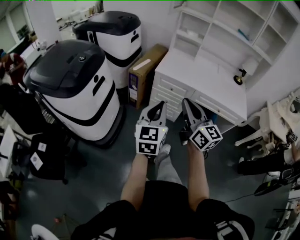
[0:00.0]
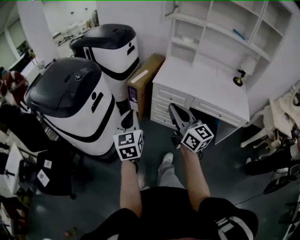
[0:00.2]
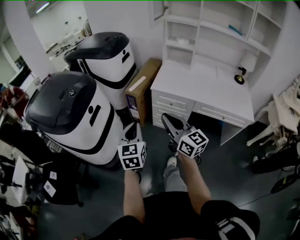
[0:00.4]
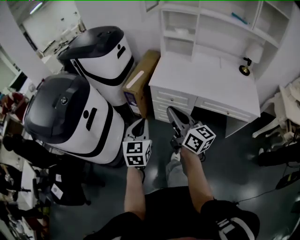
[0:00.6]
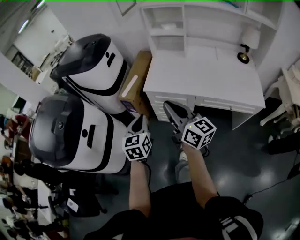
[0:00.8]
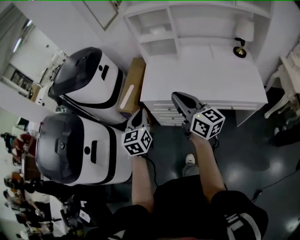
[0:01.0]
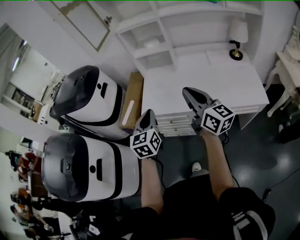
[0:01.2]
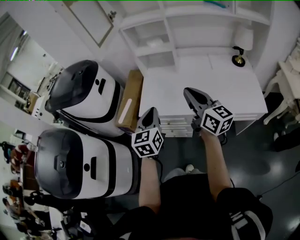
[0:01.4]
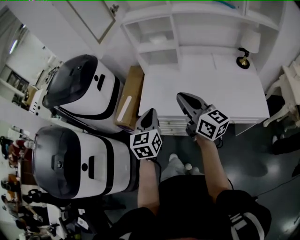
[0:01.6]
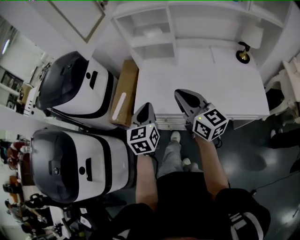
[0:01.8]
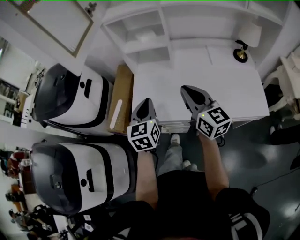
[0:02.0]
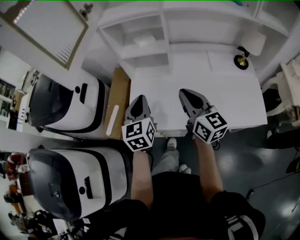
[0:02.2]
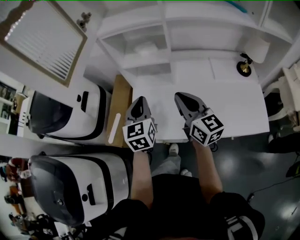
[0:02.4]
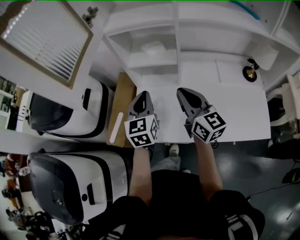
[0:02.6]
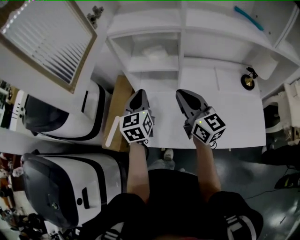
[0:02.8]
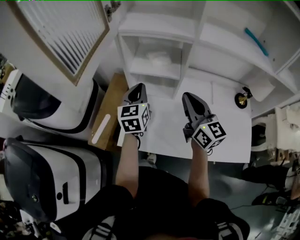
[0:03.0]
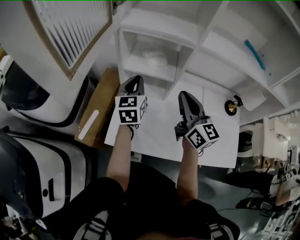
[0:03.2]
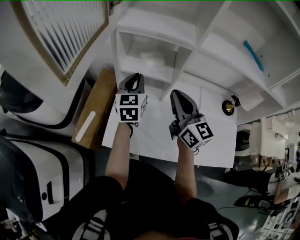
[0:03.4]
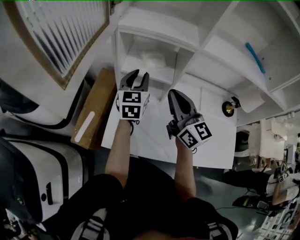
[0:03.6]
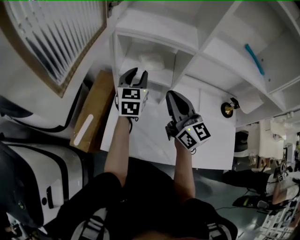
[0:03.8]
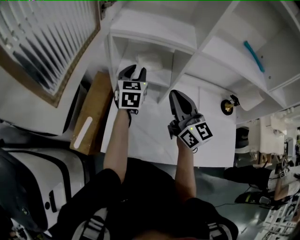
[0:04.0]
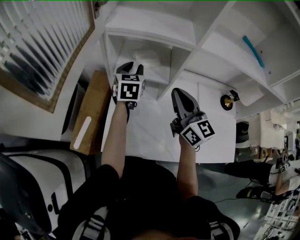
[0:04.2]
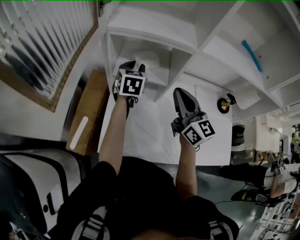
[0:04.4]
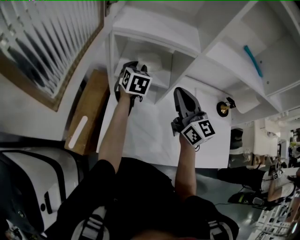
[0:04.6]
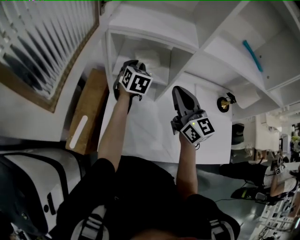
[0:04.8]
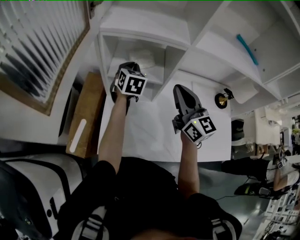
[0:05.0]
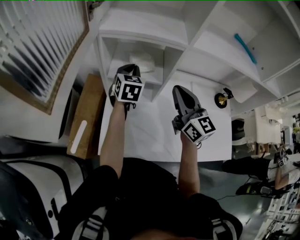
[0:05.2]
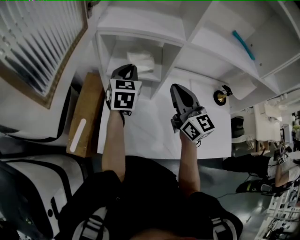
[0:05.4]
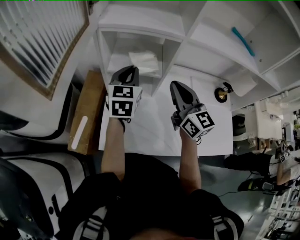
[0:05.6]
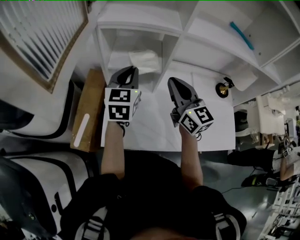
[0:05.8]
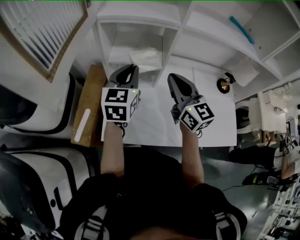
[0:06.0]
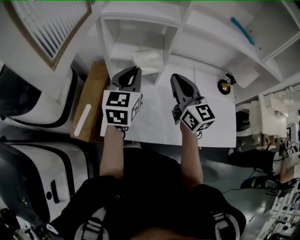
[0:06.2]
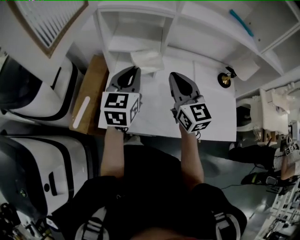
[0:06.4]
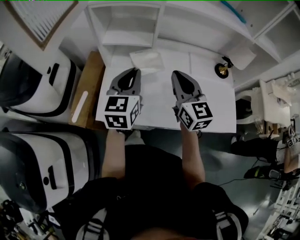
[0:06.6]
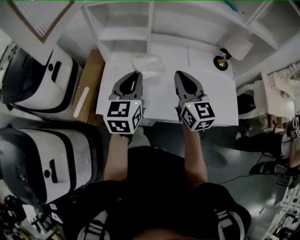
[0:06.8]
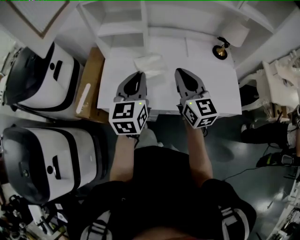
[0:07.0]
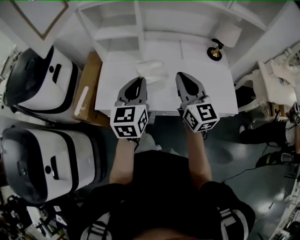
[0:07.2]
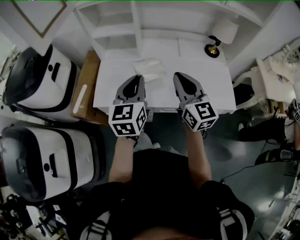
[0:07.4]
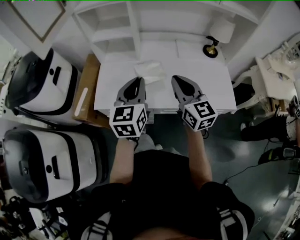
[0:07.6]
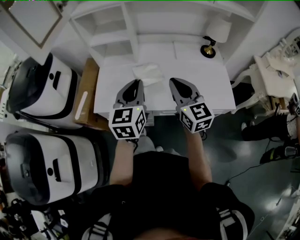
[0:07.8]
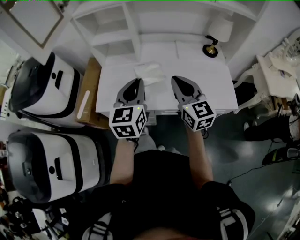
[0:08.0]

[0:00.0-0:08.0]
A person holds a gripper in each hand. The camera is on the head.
0:00.0 to 0:01.6: The grippers both shift forward and to the right by roughly 40 cm.
0:01.6 to 0:03.2: Both grippers travel together forward, approximately 30 cm.
0:03.2 to 0:04.8: The left gripper goes approximately 15 cm forward and to the right, and turns by roughly 30 degrees. Meanwhile the right gripper goes approximately 5 cm forward.
0:04.8 to 0:06.4: The right gripper shifts about 10 cm backward, while the left gripper shifts some 25 cm backward and upward, and swivels about 20 degrees.
0:06.4 to 0:08.0: The two grippers go about 25 cm backward and to the right.

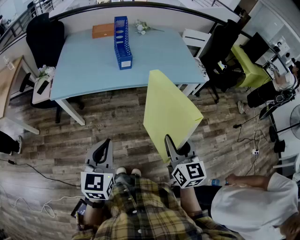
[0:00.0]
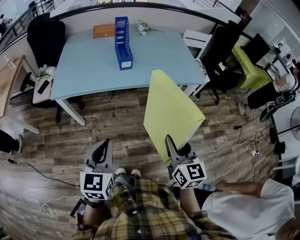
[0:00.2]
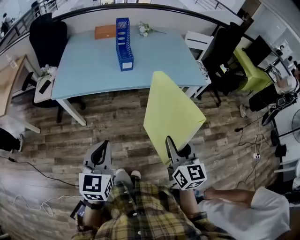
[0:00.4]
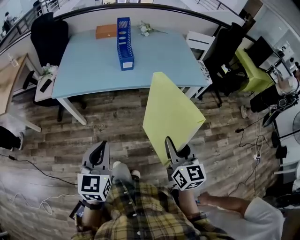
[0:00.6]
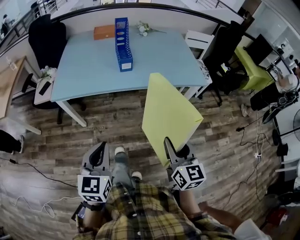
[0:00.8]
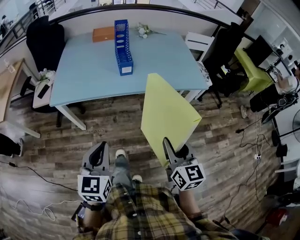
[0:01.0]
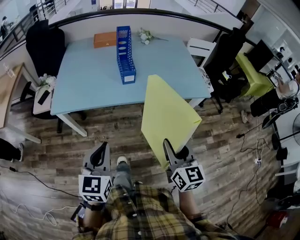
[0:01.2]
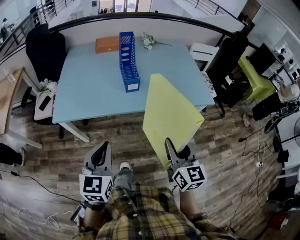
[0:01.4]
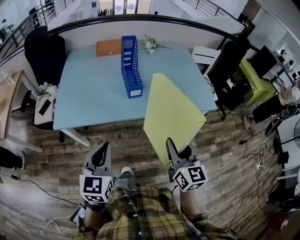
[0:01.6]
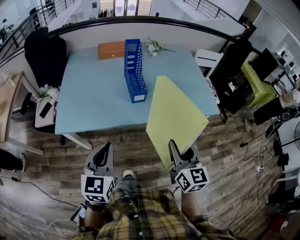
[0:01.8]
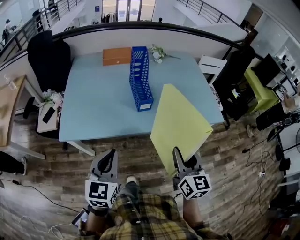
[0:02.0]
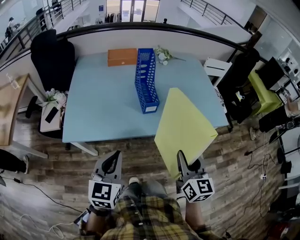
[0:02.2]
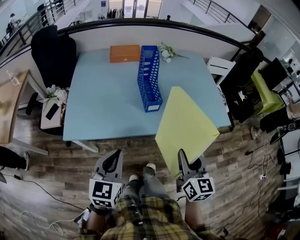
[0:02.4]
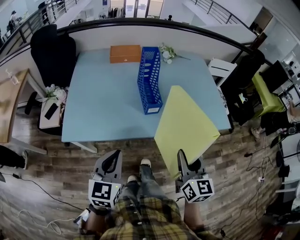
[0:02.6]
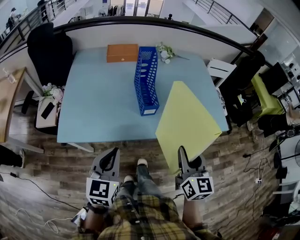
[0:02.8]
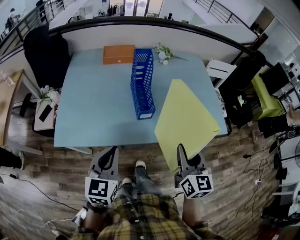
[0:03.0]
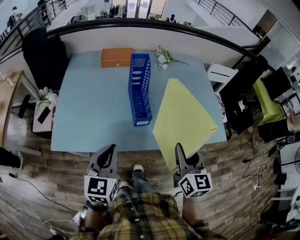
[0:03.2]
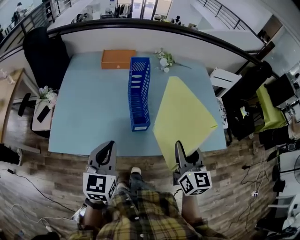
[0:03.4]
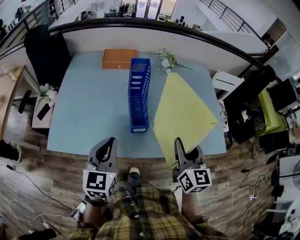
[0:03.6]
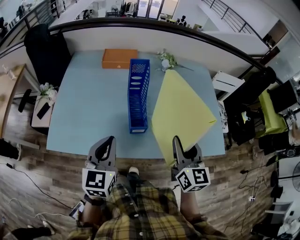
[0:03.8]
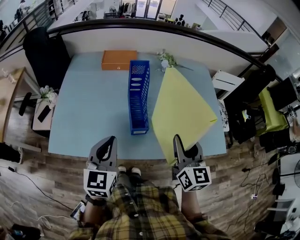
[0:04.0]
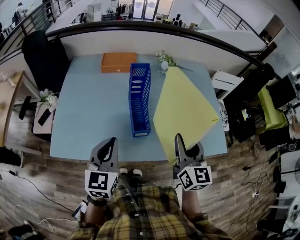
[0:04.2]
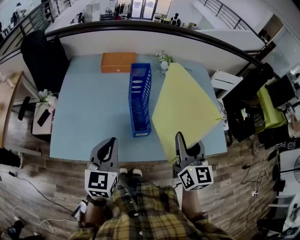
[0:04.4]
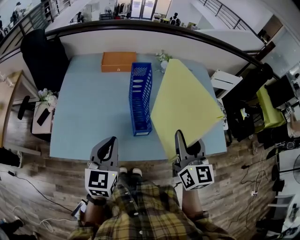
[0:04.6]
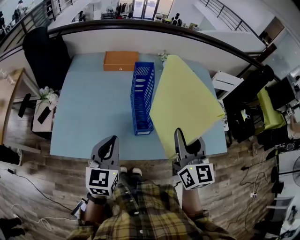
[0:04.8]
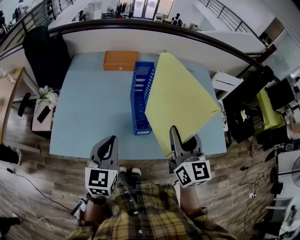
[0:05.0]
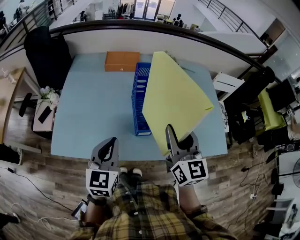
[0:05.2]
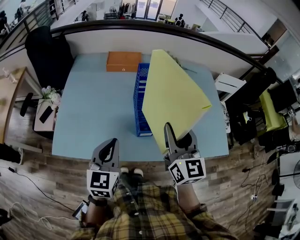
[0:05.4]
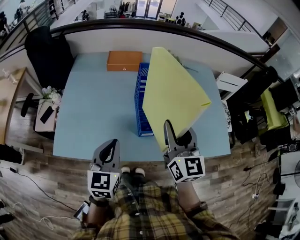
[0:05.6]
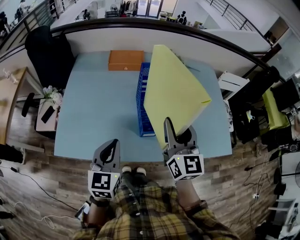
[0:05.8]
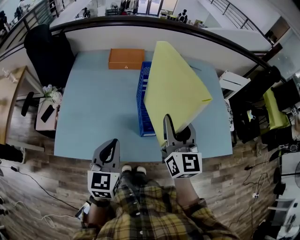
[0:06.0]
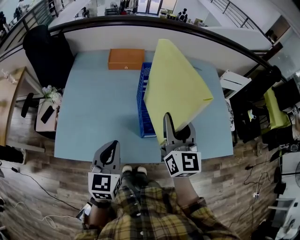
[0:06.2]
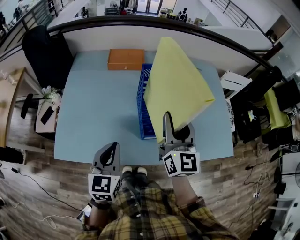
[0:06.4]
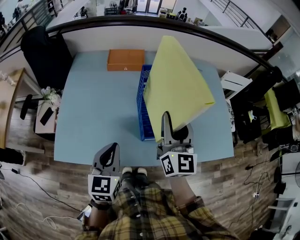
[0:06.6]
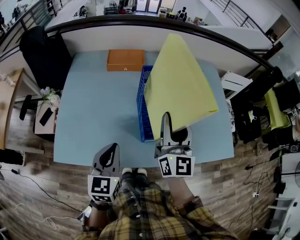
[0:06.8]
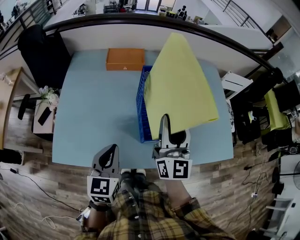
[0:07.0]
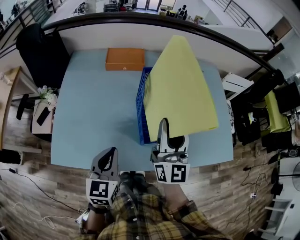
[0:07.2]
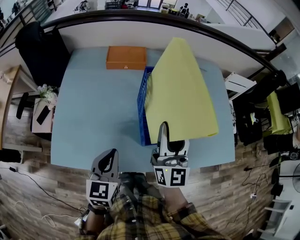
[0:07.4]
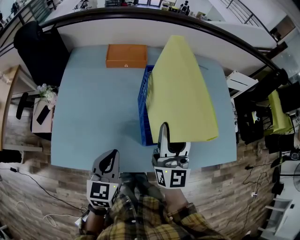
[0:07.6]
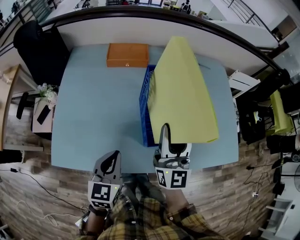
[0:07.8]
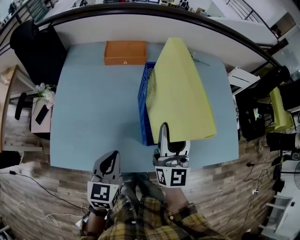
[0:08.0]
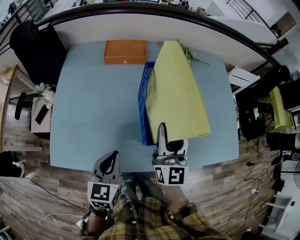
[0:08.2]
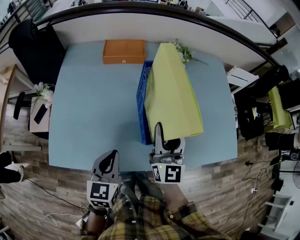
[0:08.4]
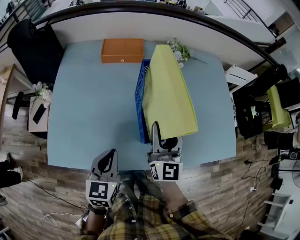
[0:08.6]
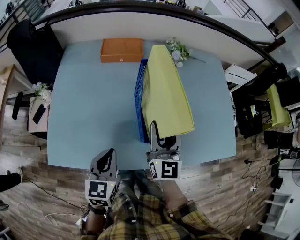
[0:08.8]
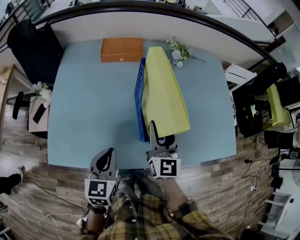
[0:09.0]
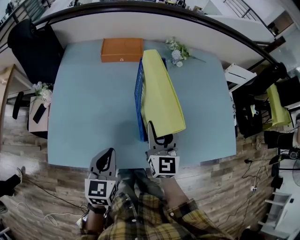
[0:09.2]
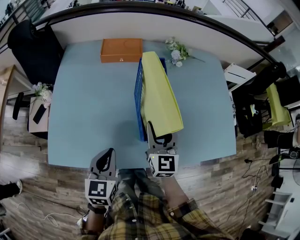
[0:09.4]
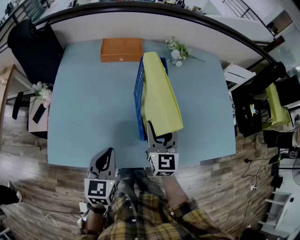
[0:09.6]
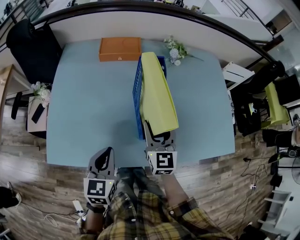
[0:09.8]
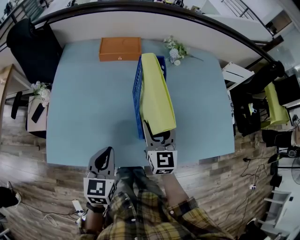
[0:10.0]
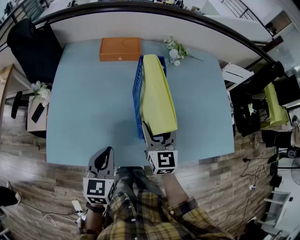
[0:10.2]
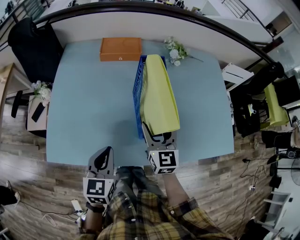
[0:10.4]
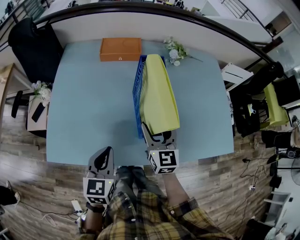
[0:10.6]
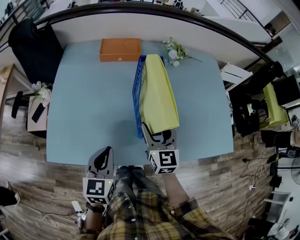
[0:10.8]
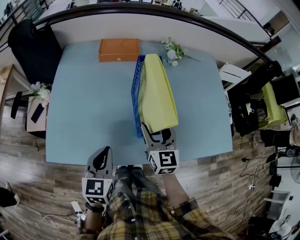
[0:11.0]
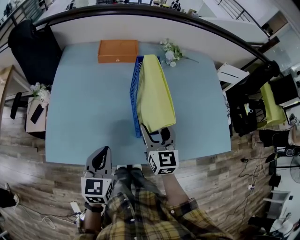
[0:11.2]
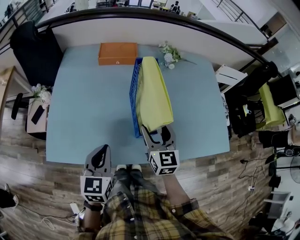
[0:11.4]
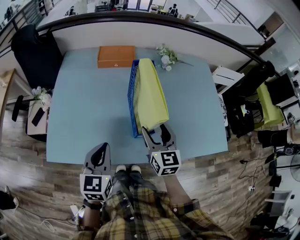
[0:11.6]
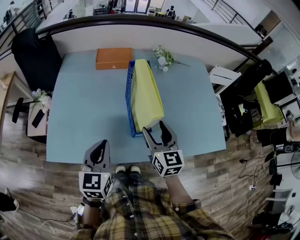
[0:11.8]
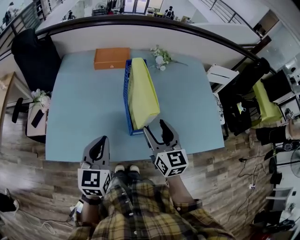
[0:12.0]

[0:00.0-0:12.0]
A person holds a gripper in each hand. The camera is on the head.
0:00.0 to 0:01.6: The grippers both shift forward by about 20 cm.
0:01.6 to 0:03.0: Both grippers travel together forward, roughly 15 cm.
0:03.0 to 0:04.4: Both grippers move forward, about 15 cm.
0:04.4 to 0:06.0: The right gripper travels to the left and forward by some 10 cm.
0:06.0 to 0:07.6: The left gripper heads downward, covering roughly 5 cm.
0:07.6 to 0:09.0: The right gripper heads downward, covering roughly 10 cm.
0:09.0 to 0:10.4: The right gripper opens.
0:10.4 to 0:12.0: The right gripper is displaced upward and backward by about 10 cm; the left gripper moves upward, roughly 5 cm.

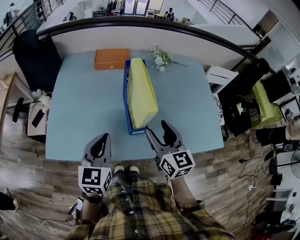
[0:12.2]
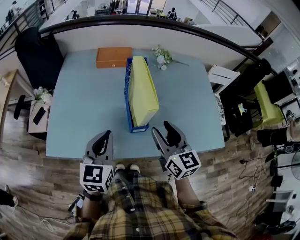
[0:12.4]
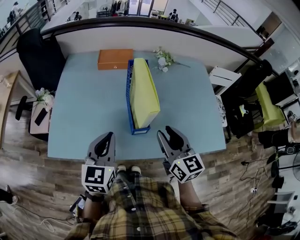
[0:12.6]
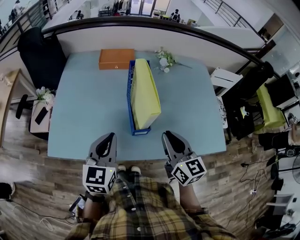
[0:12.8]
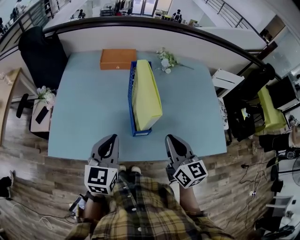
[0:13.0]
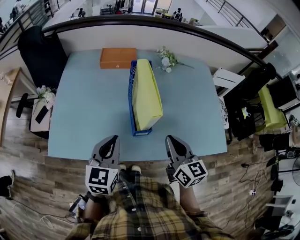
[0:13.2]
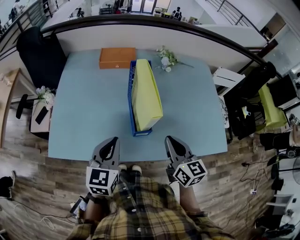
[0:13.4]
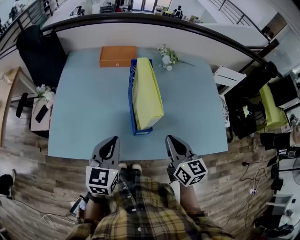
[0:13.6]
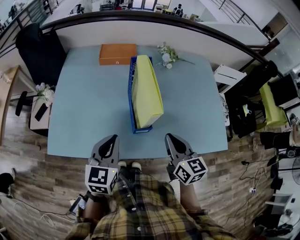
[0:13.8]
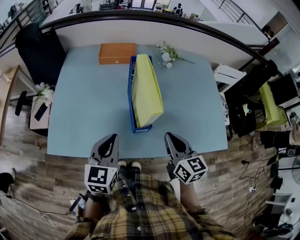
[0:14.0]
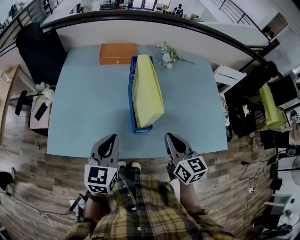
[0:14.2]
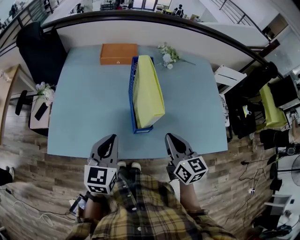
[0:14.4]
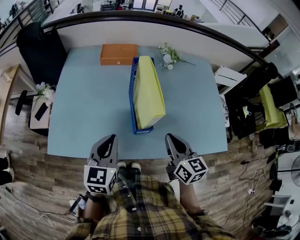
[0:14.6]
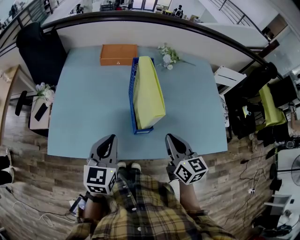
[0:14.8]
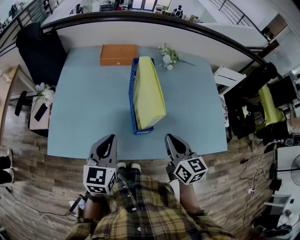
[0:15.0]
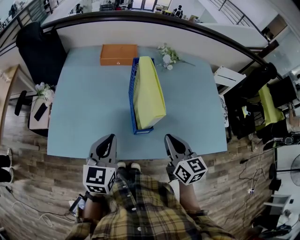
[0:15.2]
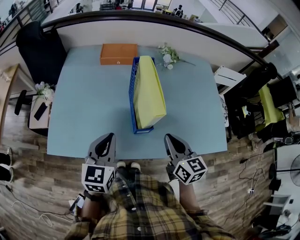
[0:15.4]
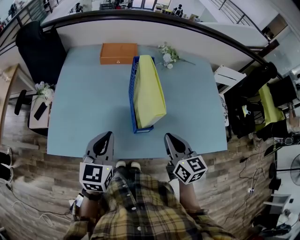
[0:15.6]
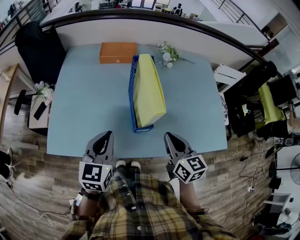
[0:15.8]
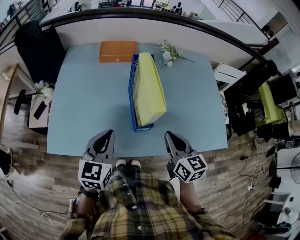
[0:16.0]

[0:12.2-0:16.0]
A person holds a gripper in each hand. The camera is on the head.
0:12.2 to 0:13.4: The right gripper moves roughly 5 cm, and closes.
0:13.4 to 0:16.0: The grippers move only a little.
